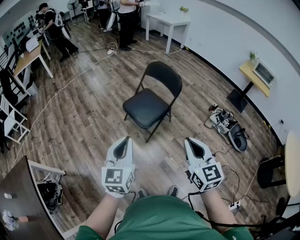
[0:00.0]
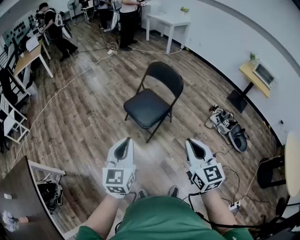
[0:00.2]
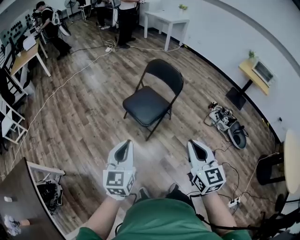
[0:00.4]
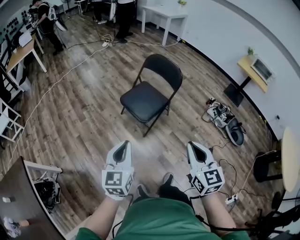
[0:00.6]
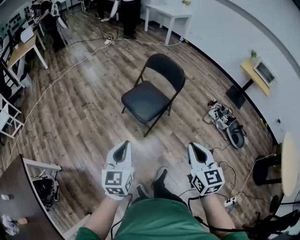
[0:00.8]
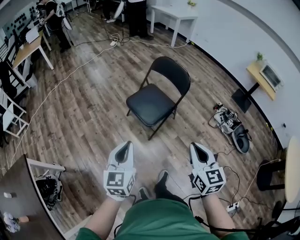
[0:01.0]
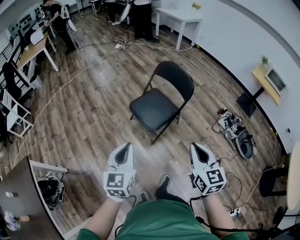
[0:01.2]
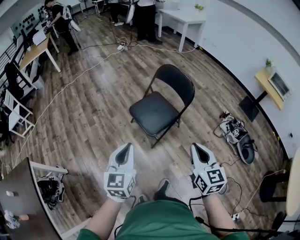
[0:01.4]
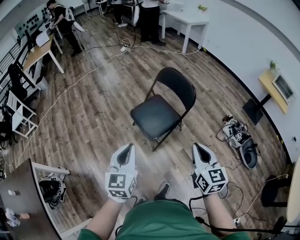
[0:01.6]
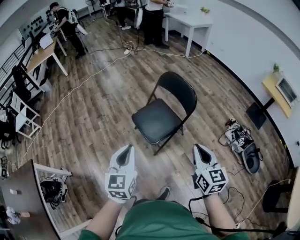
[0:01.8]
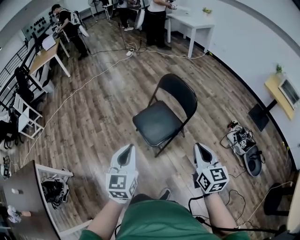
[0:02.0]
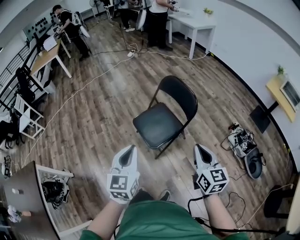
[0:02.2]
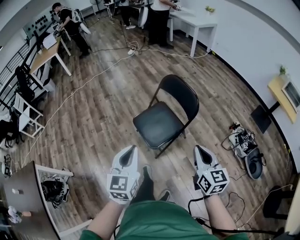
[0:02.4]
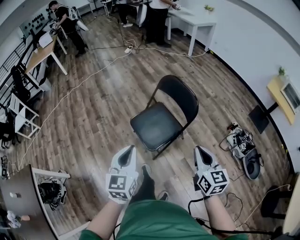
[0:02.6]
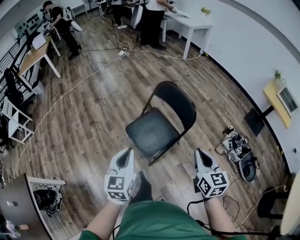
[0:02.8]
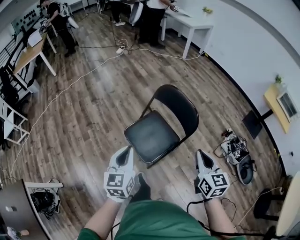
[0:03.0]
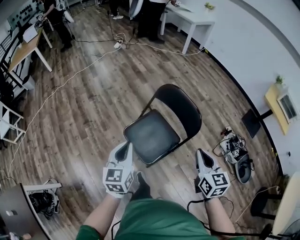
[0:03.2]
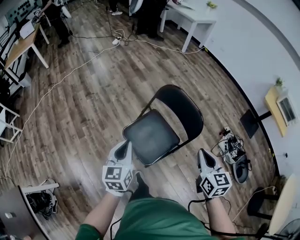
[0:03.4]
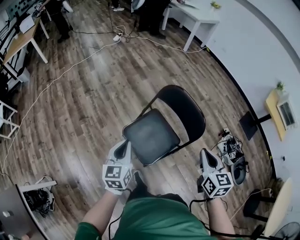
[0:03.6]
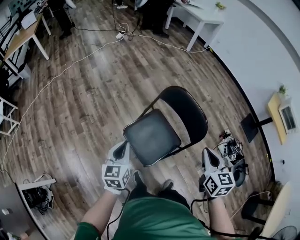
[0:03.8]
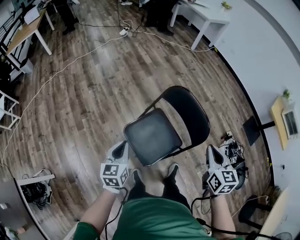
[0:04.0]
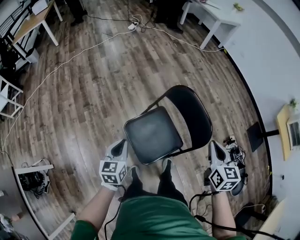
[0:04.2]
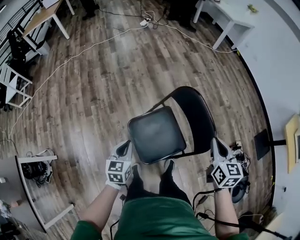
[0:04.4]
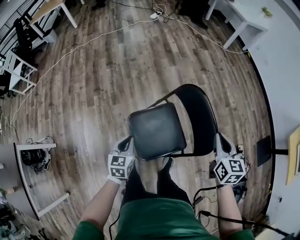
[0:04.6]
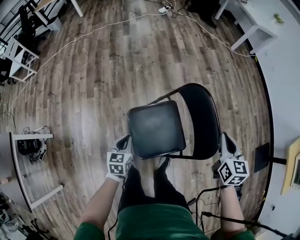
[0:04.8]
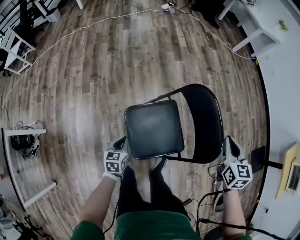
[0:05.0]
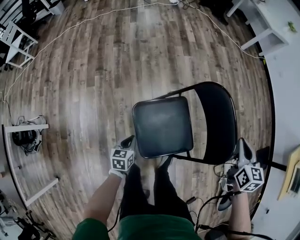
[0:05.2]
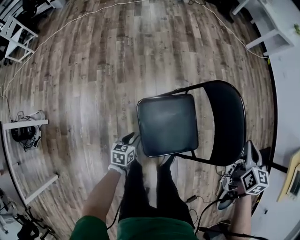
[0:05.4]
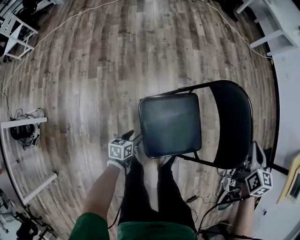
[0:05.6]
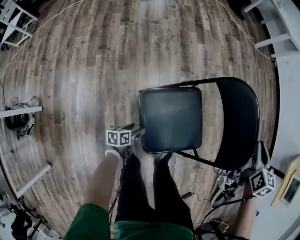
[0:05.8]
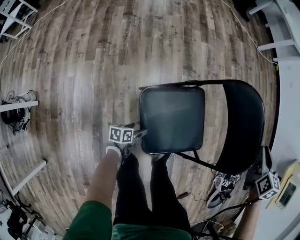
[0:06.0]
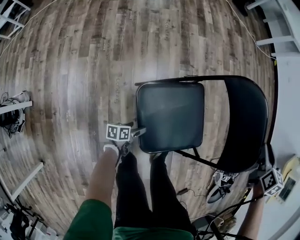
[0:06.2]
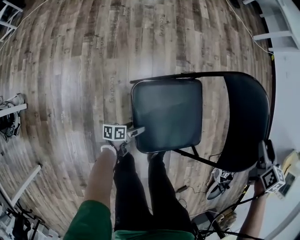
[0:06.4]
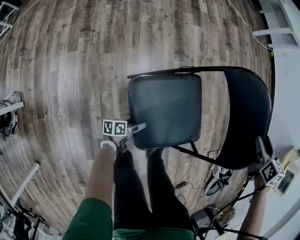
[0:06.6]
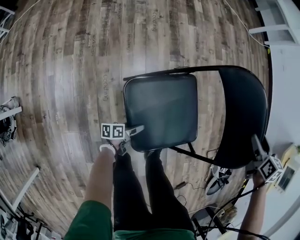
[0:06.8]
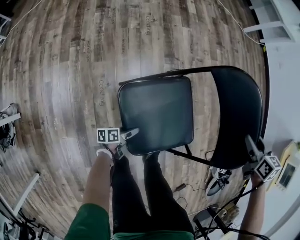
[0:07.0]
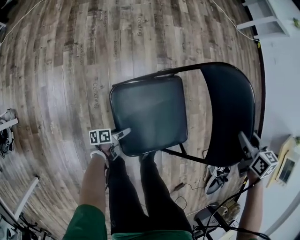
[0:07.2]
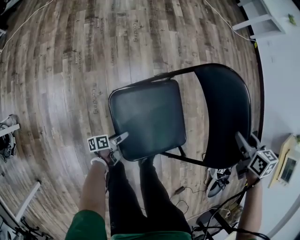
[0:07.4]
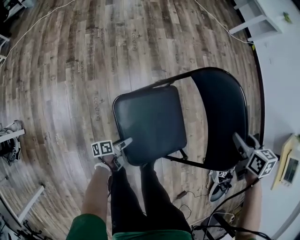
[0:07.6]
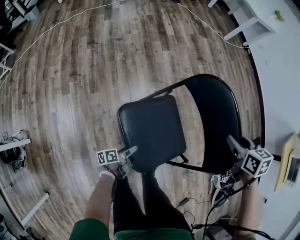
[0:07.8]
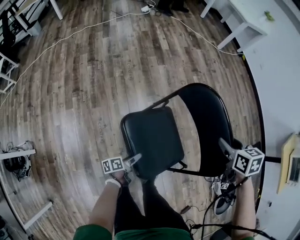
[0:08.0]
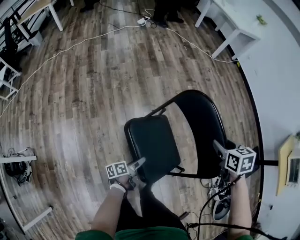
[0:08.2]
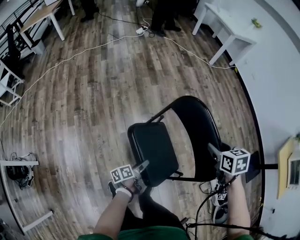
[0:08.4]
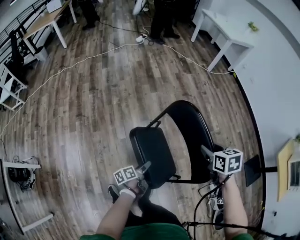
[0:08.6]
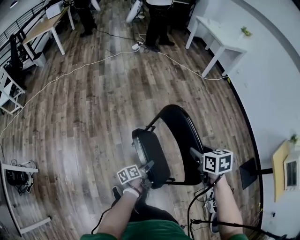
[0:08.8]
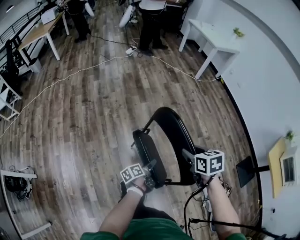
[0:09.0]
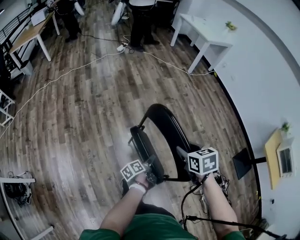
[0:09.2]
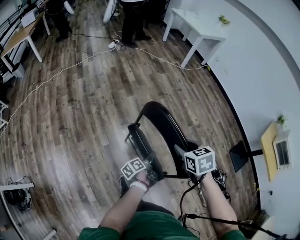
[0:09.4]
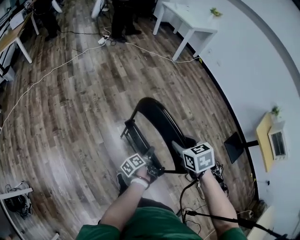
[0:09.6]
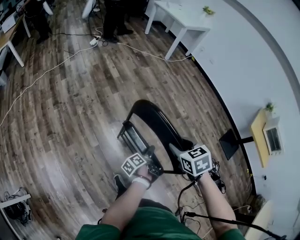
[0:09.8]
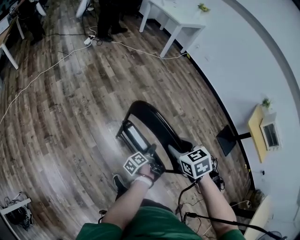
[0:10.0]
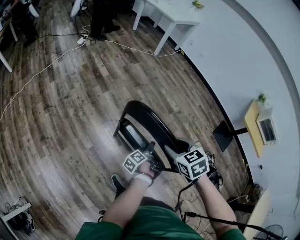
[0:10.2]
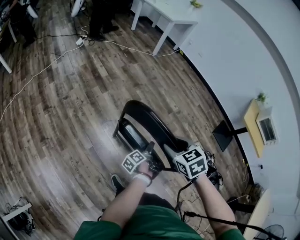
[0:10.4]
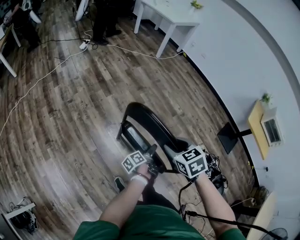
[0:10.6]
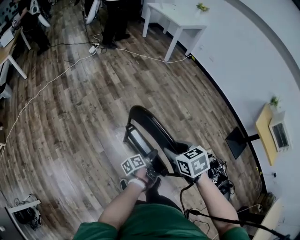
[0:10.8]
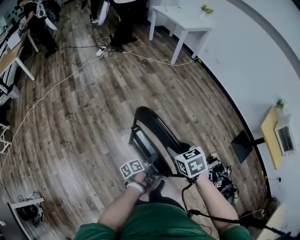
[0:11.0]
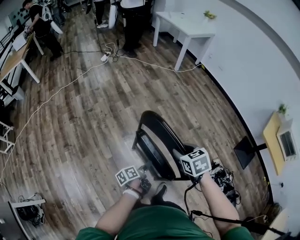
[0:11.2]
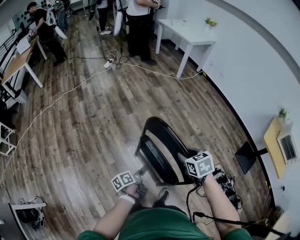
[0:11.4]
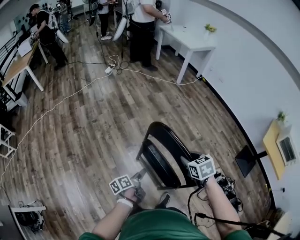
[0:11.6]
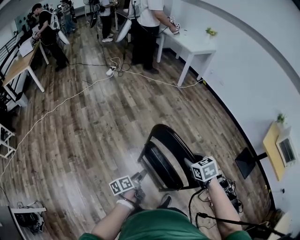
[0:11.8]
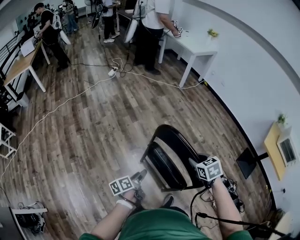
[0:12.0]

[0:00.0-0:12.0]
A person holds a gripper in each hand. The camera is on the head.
0:00.0 to 0:01.6: The two grippers go roughly 15 cm forward.
0:01.6 to 0:03.0: The grippers both shift forward by approximately 20 cm.
0:03.0 to 0:04.4: The right gripper moves forward, some 25 cm; the left gripper travels downward and forward by roughly 25 cm, and turns by approximately 20 degrees.
0:04.4 to 0:06.0: The right gripper moves downward and forward, approximately 20 cm. The left gripper is displaced downward by approximately 40 cm, rotates around the line of its fingers by approximately 40 degrees, counterclockwise from behind, and opens.
0:06.0 to 0:07.6: The left gripper is displaced to the right by approximately 5 cm, and rotates some 20 degrees. Meanwhile the right gripper opens, then closes once more.
0:07.6 to 0:09.0: The left gripper moves upward, to the right and forward, about 40 cm. Meanwhile the right gripper goes some 15 cm upward.
0:09.0 to 0:10.4: The left gripper is displaced to the right and forward by about 10 cm.
0:10.4 to 0:12.0: The left gripper shifts some 20 cm to the left and upward, and swivels some 20 degrees.

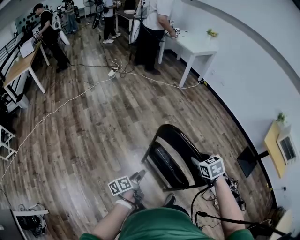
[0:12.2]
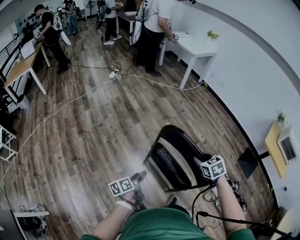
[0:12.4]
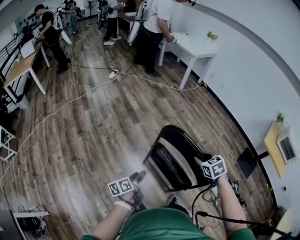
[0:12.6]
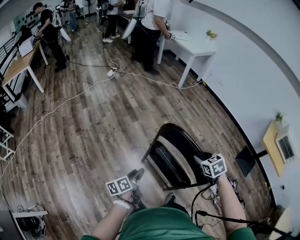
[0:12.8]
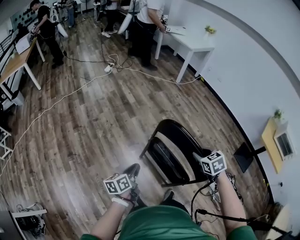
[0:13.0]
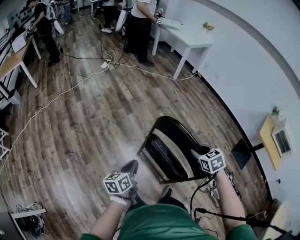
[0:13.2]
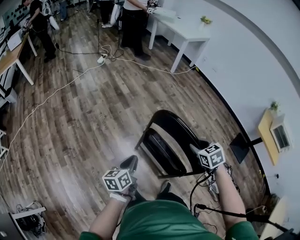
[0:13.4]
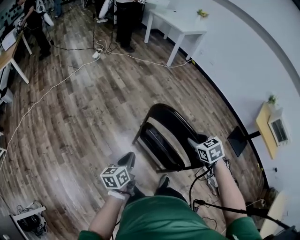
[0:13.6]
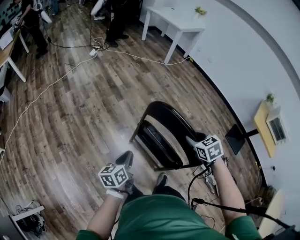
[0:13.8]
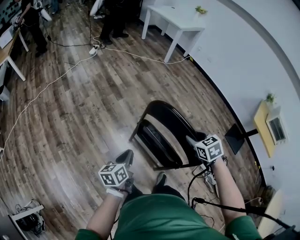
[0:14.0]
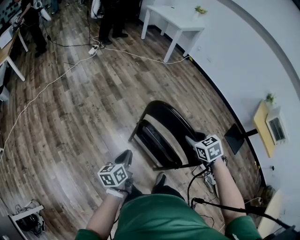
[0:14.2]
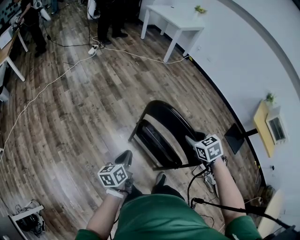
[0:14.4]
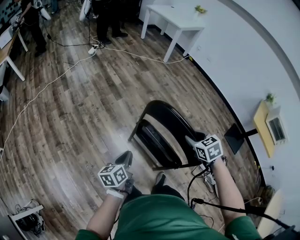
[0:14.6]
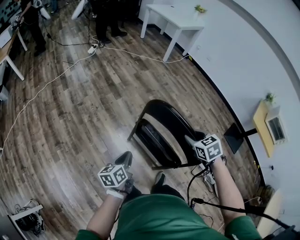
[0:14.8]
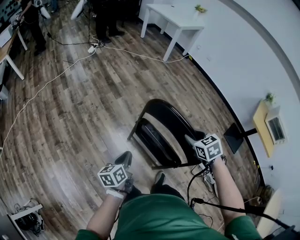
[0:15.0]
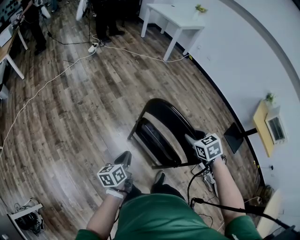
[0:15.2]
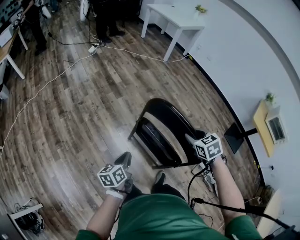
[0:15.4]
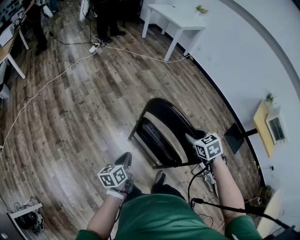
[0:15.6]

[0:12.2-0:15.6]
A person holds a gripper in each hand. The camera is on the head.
0:12.2 to 0:13.8: The left gripper moves some 5 cm, swivels some 30 degrees, and closes its fingers.
0:13.8 to 0:15.6: The grippers make only small movements.

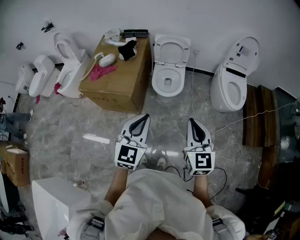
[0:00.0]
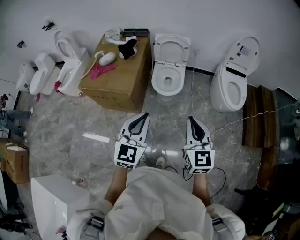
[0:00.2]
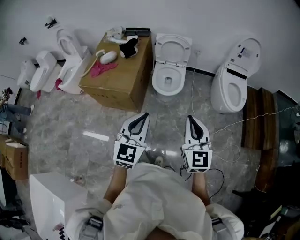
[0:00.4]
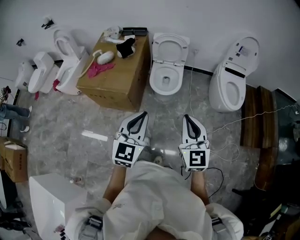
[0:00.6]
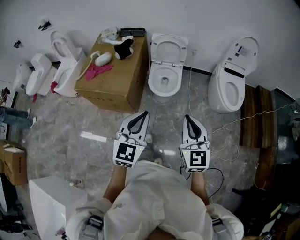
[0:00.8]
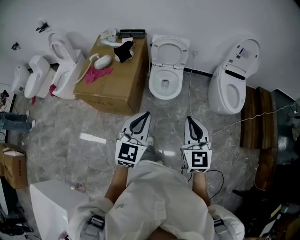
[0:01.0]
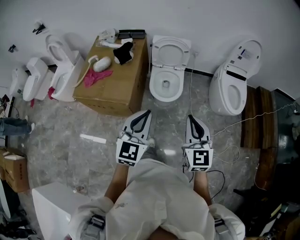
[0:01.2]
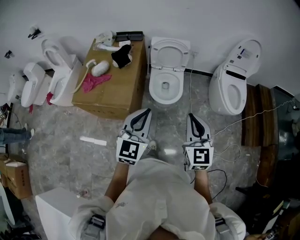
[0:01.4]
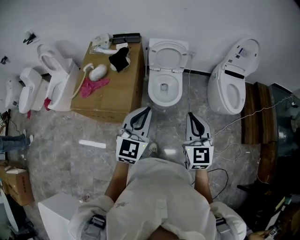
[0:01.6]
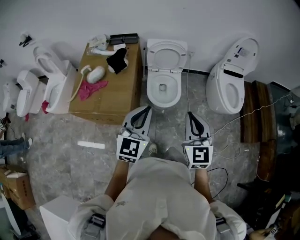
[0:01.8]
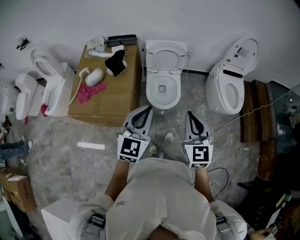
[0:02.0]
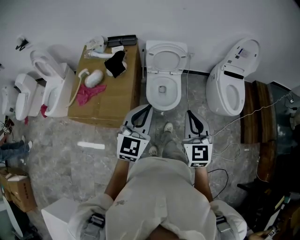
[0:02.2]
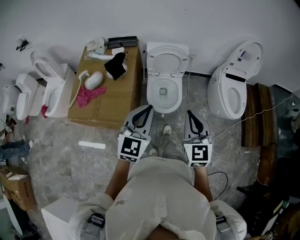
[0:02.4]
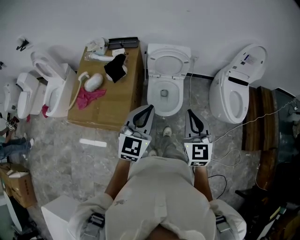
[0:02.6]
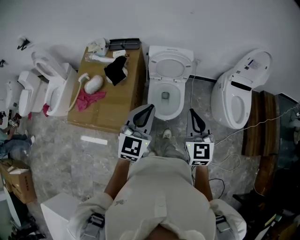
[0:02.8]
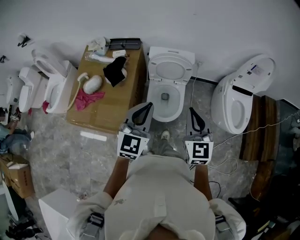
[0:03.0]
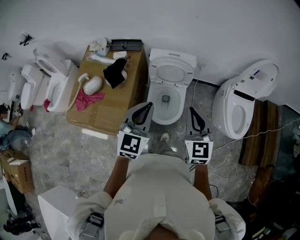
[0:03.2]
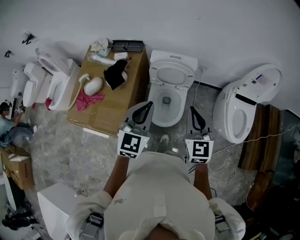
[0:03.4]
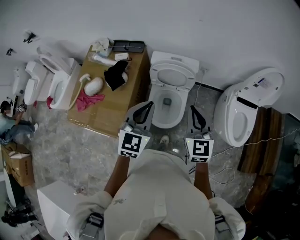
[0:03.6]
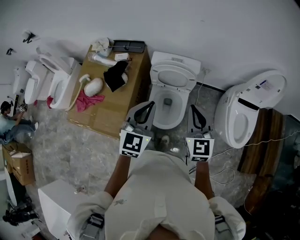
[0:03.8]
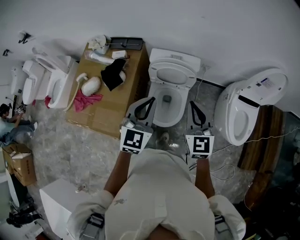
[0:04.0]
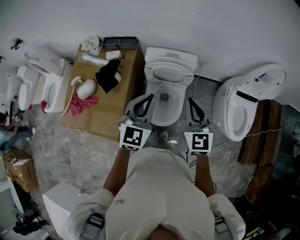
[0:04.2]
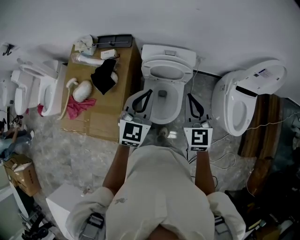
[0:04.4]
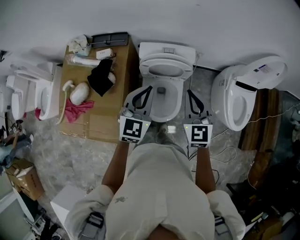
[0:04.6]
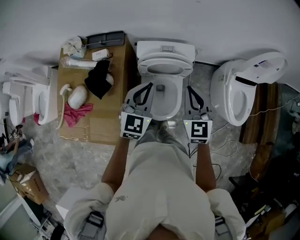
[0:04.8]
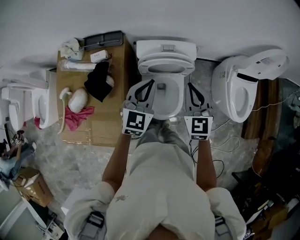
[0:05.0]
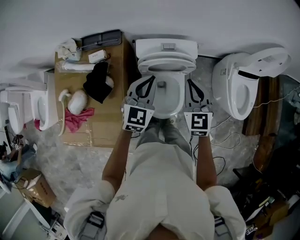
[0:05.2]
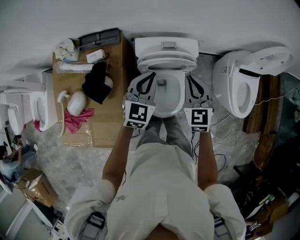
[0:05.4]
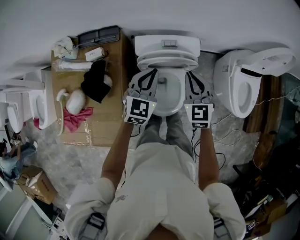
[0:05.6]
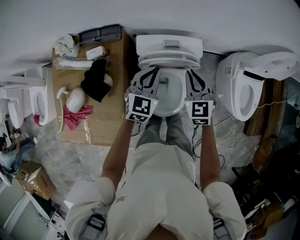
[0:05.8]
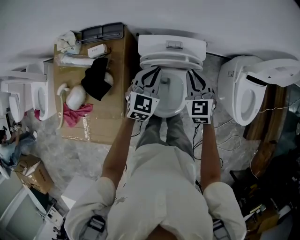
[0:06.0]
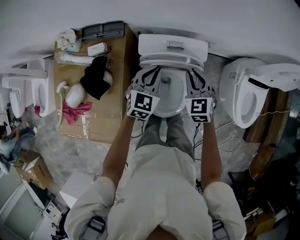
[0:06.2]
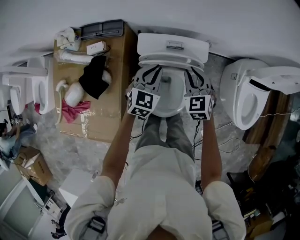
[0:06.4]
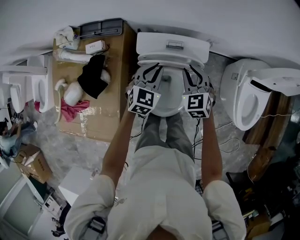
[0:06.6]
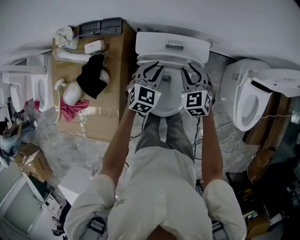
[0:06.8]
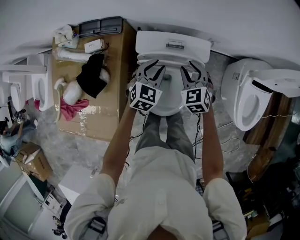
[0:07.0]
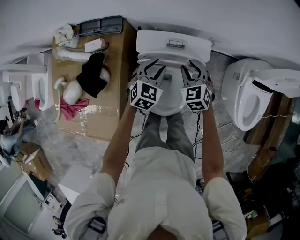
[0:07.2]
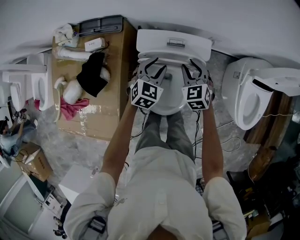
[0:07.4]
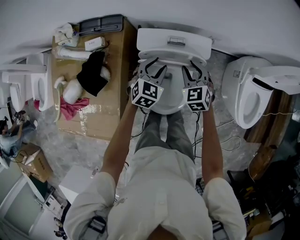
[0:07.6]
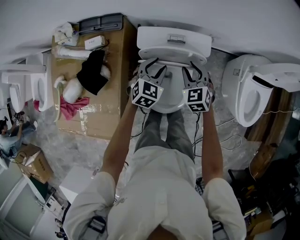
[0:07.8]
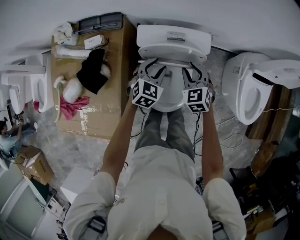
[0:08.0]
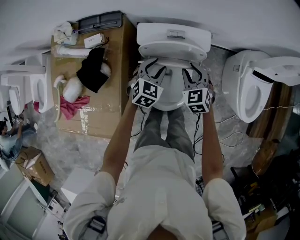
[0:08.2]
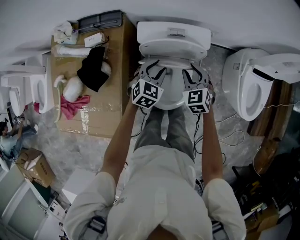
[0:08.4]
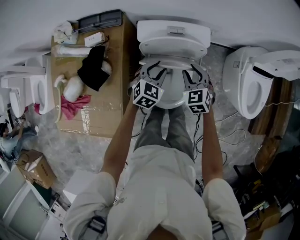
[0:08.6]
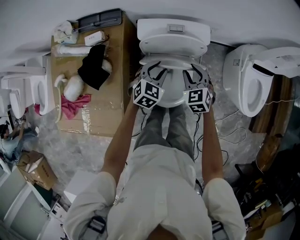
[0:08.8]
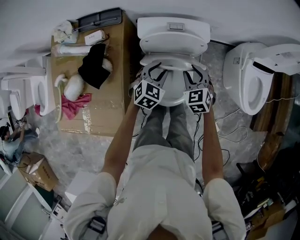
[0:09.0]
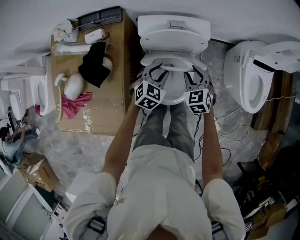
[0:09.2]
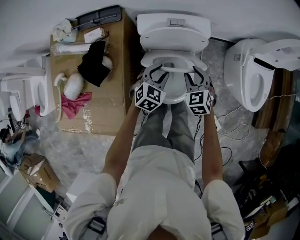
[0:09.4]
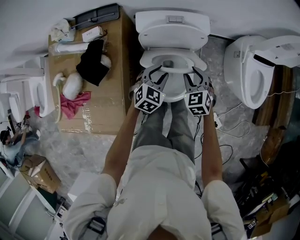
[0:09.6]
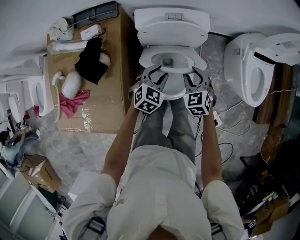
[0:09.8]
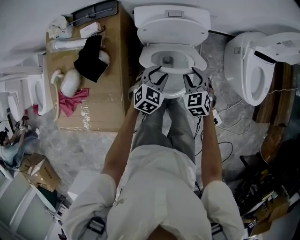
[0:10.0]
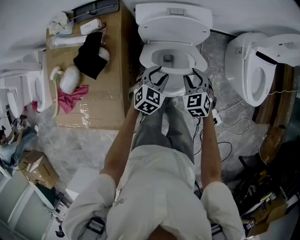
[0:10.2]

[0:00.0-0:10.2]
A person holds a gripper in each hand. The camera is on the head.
0:00.0 to 0:01.4: The two grippers go roughly 15 cm forward.
0:01.4 to 0:03.0: Both grippers move forward, some 25 cm.
0:03.0 to 0:04.4: The two grippers go approximately 20 cm forward.
0:04.4 to 0:05.8: The grippers both shift forward and downward by roughly 20 cm.
0:05.8 to 0:07.2: The left gripper heads downward, covering roughly 10 cm, and opens up. Meanwhile the right gripper moves downward and forward, approximately 15 cm, and opens up.
0:07.2 to 0:08.8: The grippers both shift backward by some 10 cm.
0:08.8 to 0:10.2: The grippers both shift backward by about 10 cm.
